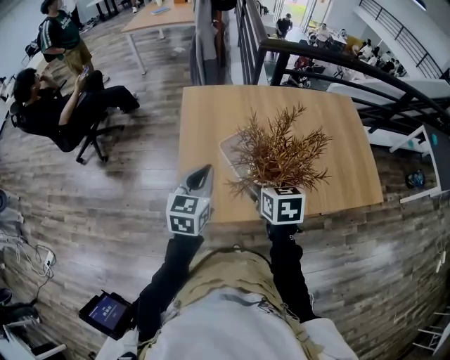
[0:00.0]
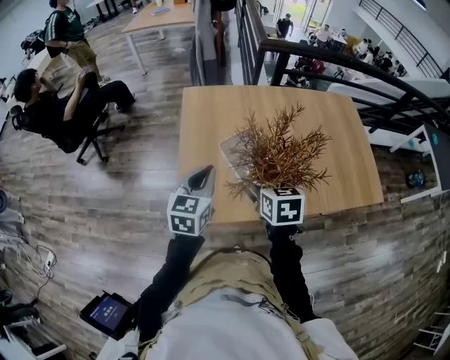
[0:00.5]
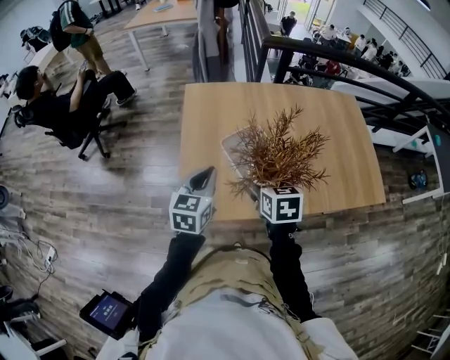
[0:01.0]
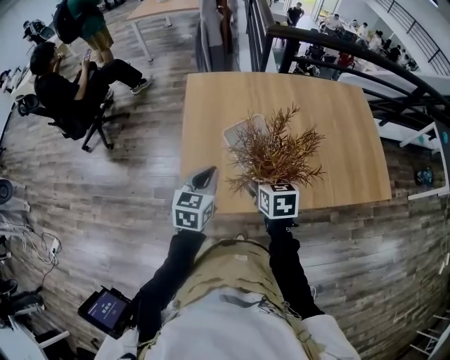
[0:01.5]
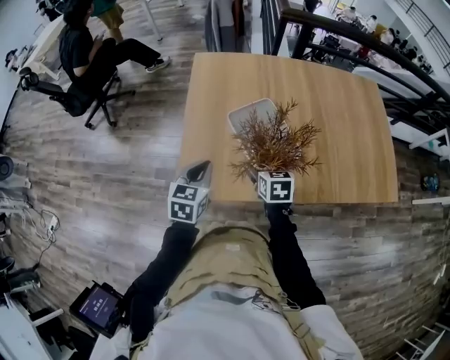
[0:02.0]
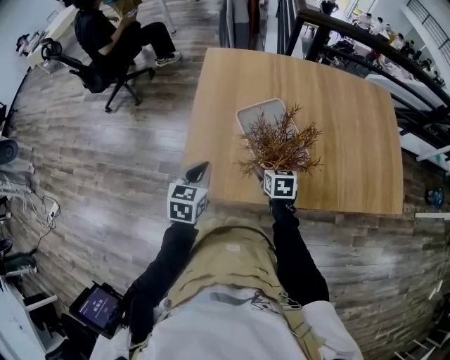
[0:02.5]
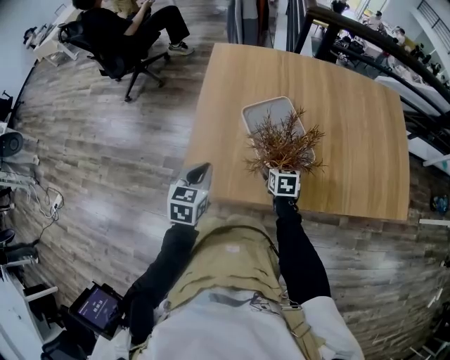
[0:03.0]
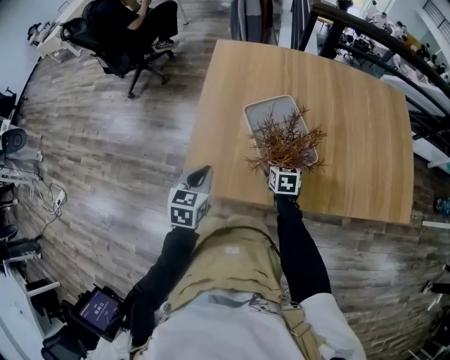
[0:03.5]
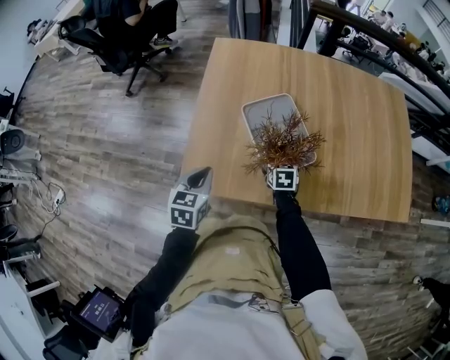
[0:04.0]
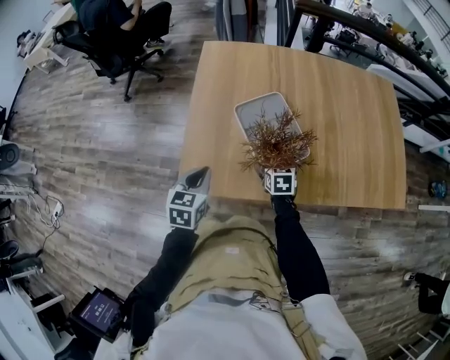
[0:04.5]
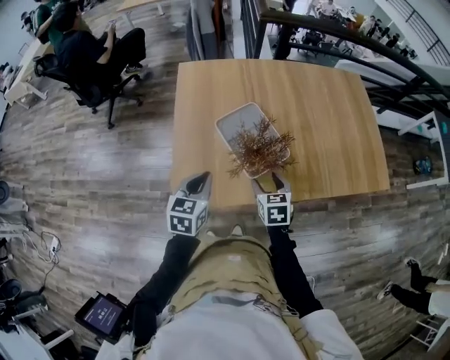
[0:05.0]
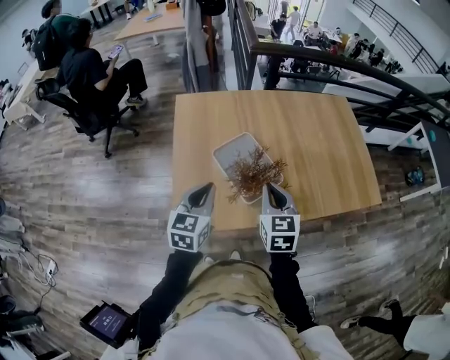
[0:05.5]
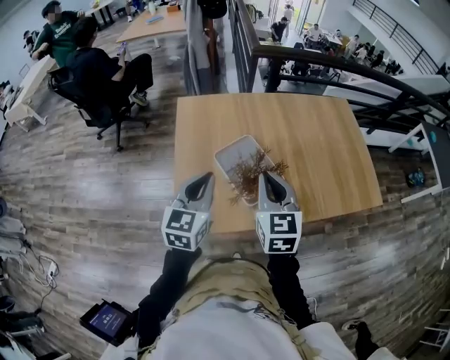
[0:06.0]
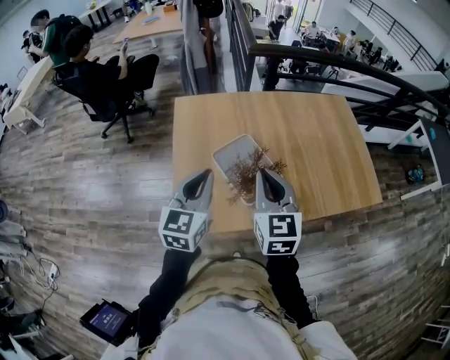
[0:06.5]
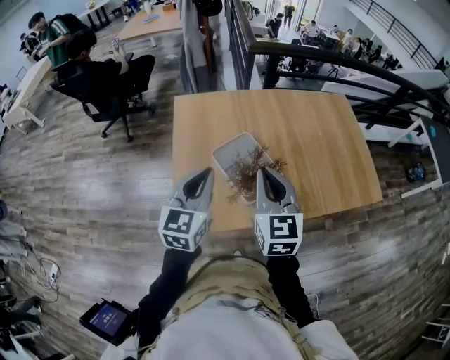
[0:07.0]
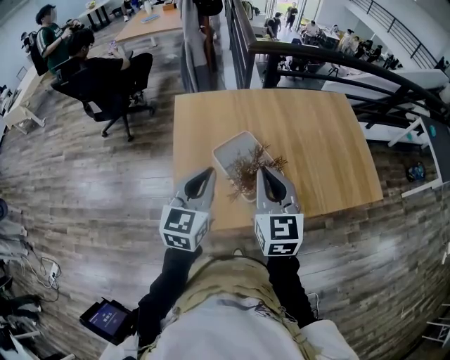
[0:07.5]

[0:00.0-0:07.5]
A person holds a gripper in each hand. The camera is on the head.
0:00.0 to 0:02.0: The grippers both shift downward by some 15 cm.
0:02.0 to 0:04.0: The left gripper moves approximately 5 cm, while the right gripper heads downward and forward, covering roughly 15 cm.
0:04.0 to 0:05.5: The left gripper heads upward, covering about 15 cm, and changes its angle by roughly 20 degrees. Meanwhile the right gripper heads upward, covering about 30 cm, changes its angle by some 30 degrees, and closes.
0:05.5 to 0:07.5: Both grippers move upward, roughly 10 cm.

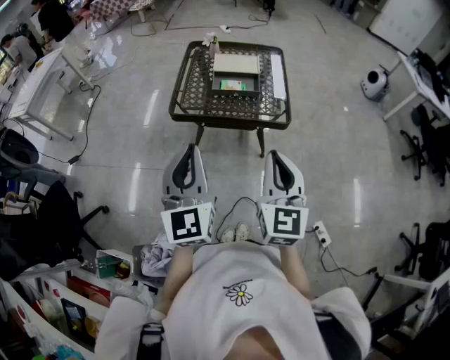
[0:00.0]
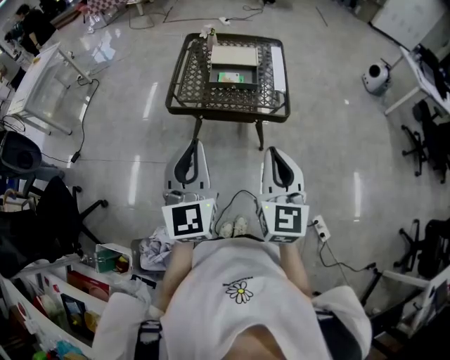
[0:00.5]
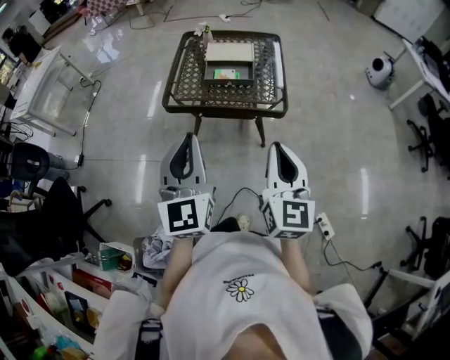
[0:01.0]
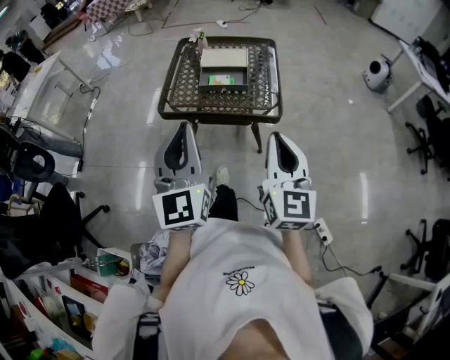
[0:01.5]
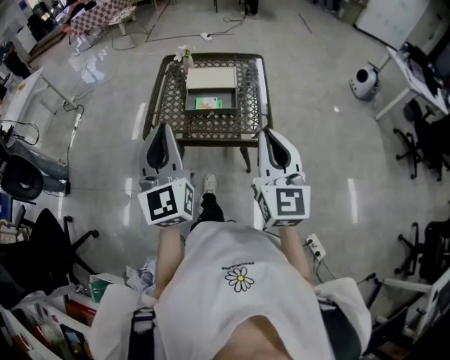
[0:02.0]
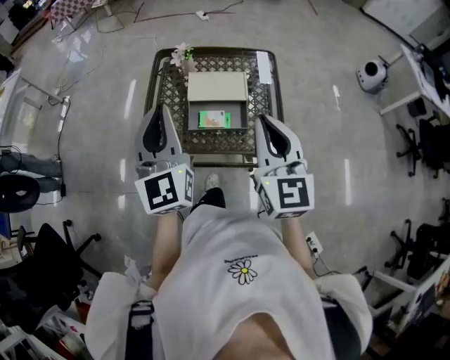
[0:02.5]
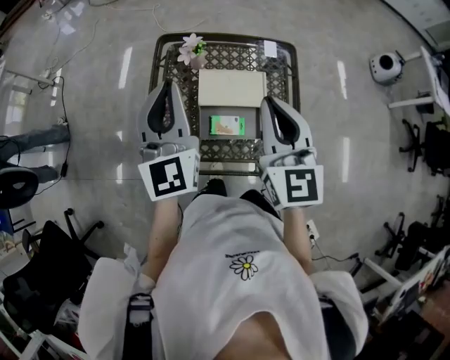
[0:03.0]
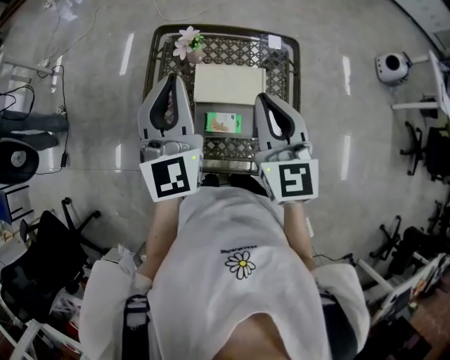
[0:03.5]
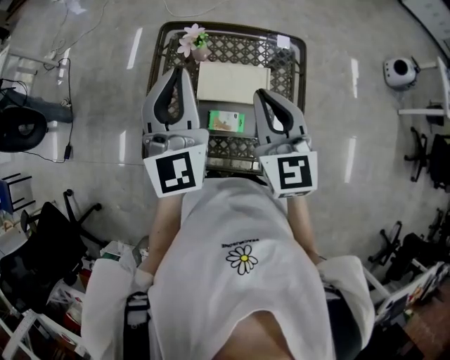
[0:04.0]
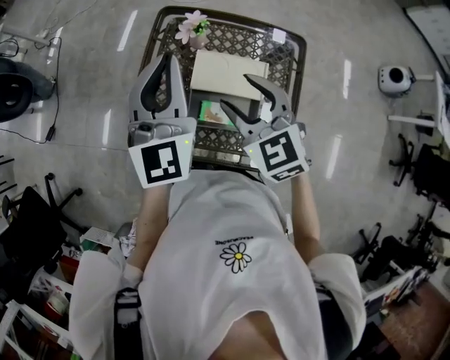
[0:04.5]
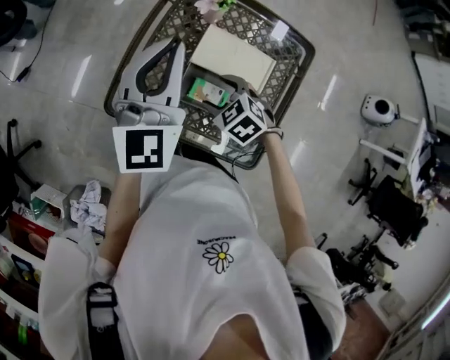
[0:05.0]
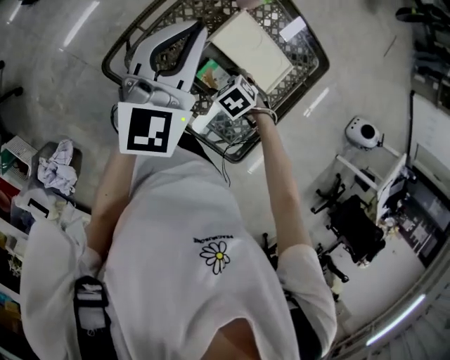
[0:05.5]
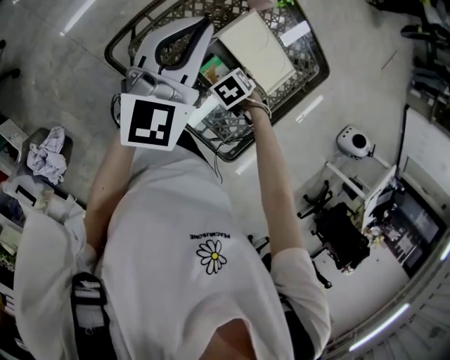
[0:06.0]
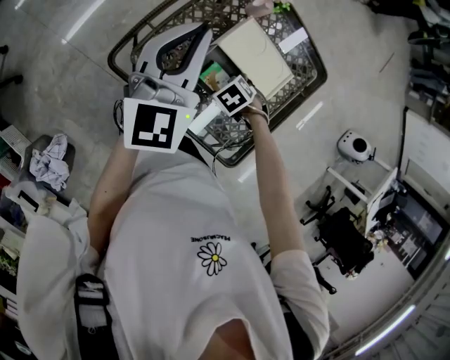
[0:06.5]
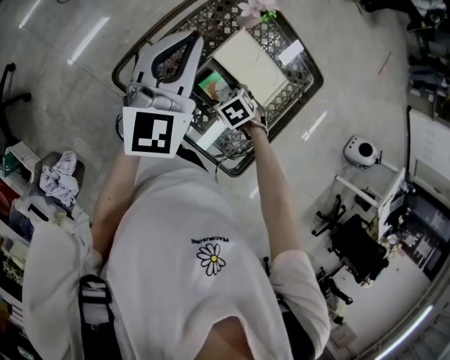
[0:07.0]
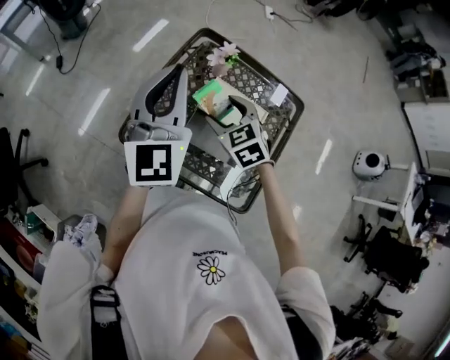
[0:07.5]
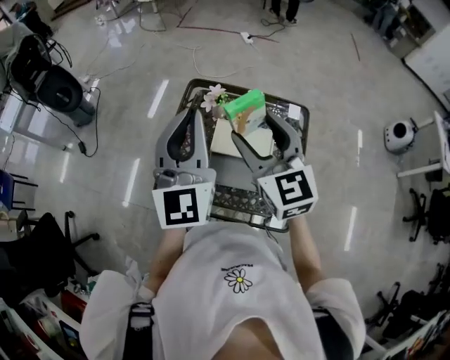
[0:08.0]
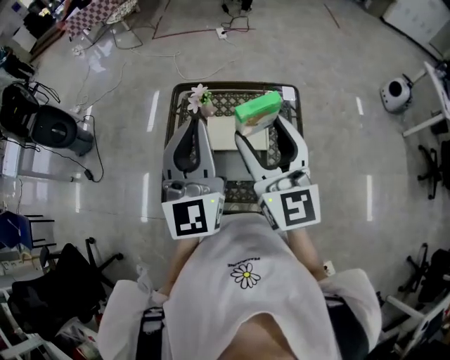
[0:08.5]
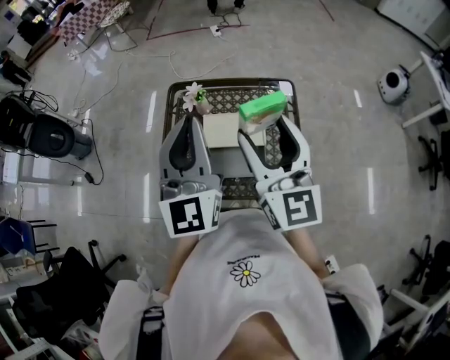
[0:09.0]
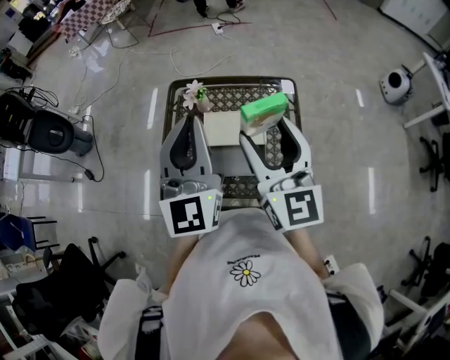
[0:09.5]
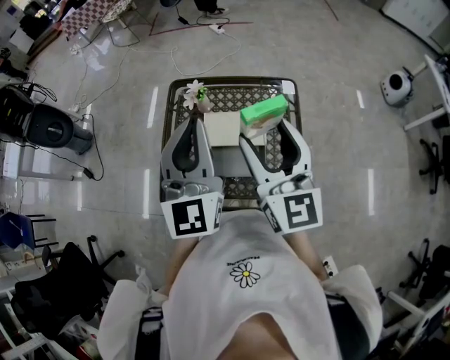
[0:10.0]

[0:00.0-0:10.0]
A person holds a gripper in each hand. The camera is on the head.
0:00.0 to 0:02.0: The right gripper moves forward and to the right, approximately 15 cm. Meanwhile the left gripper shifts about 15 cm forward.
0:02.0 to 0:04.0: Both grippers travel together forward, some 40 cm. The right gripper rotates about 20 degrees.
0:04.0 to 0:06.0: The right gripper is displaced downward by approximately 40 cm, angles its fingers downward, by roughly 70 degrees, and opens up. Meanwhile the left gripper travels downward by some 15 cm.
0:06.0 to 0:08.0: The right gripper heads upward, covering approximately 50 cm, and tilts its fingers about 80 degrees upward. The left gripper goes roughly 20 cm upward.
0:08.0 to 0:10.0: The right gripper heads to the right and backward, covering some 10 cm, and turns by approximately 20 degrees. The left gripper goes some 5 cm to the right.

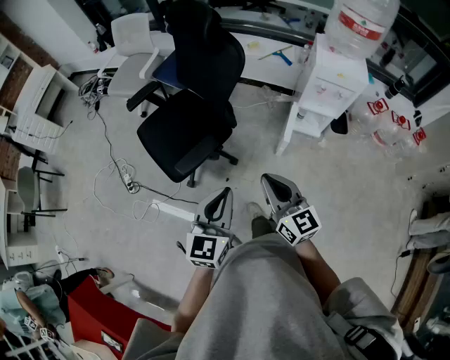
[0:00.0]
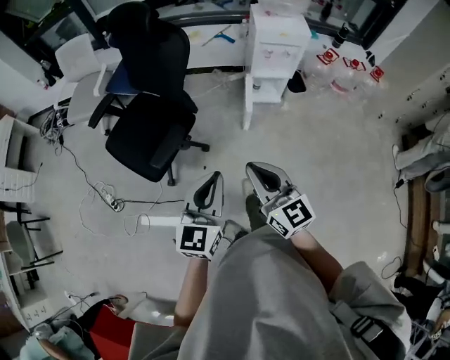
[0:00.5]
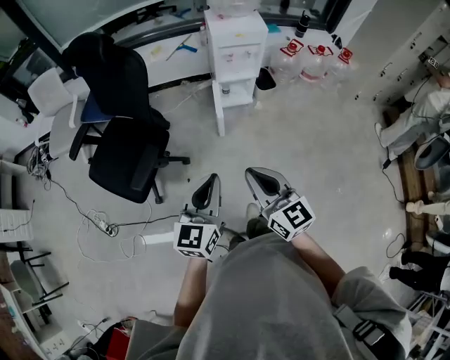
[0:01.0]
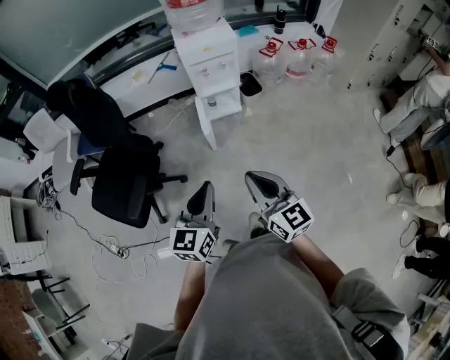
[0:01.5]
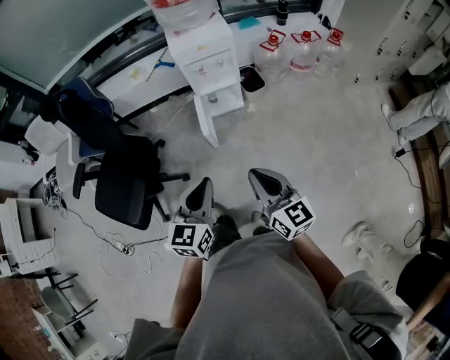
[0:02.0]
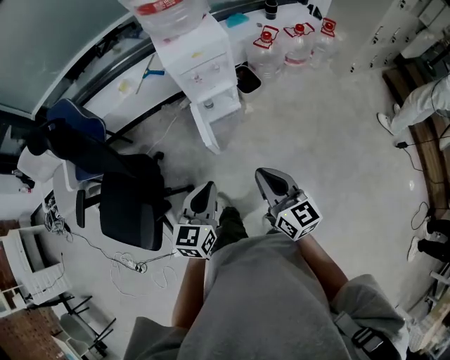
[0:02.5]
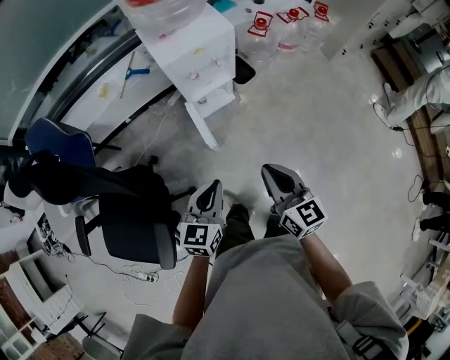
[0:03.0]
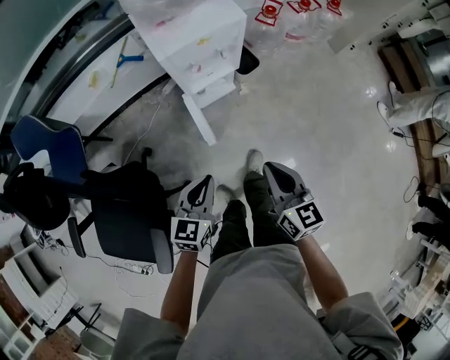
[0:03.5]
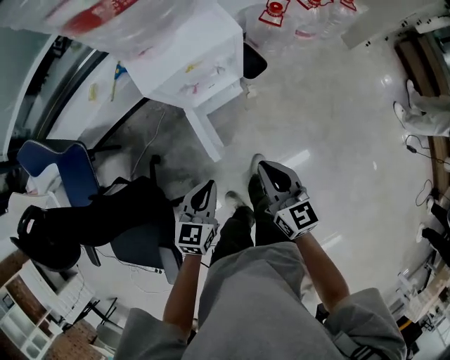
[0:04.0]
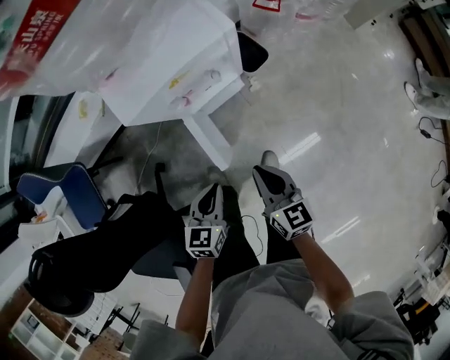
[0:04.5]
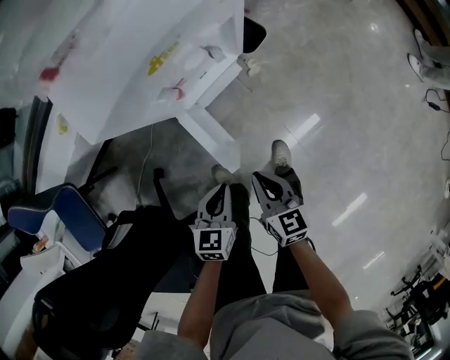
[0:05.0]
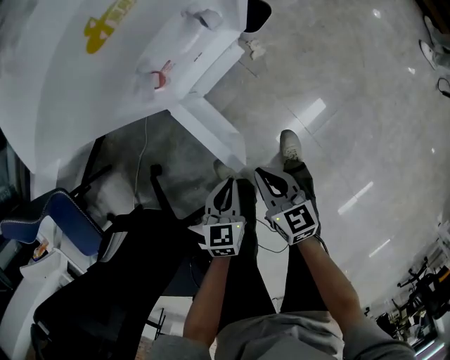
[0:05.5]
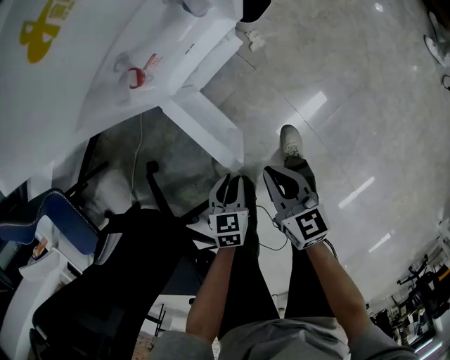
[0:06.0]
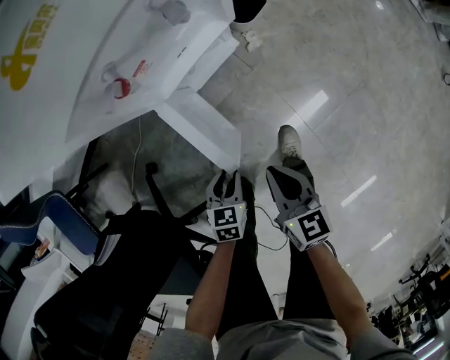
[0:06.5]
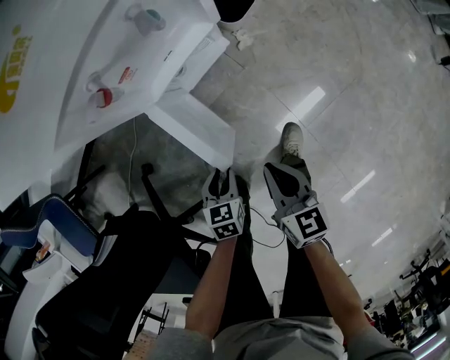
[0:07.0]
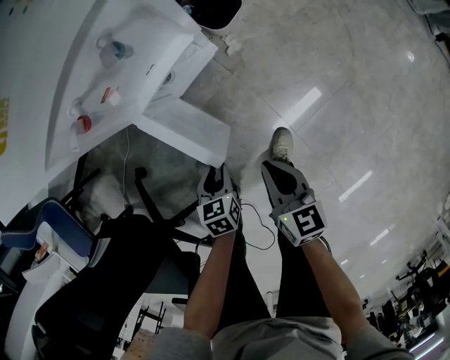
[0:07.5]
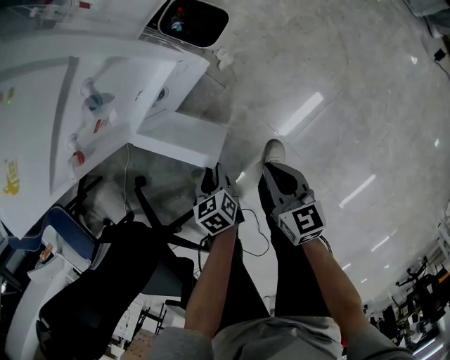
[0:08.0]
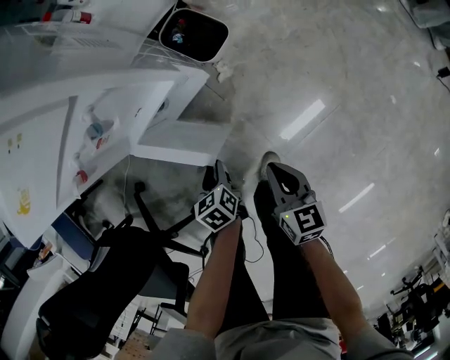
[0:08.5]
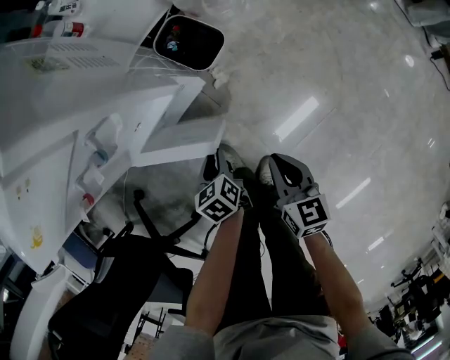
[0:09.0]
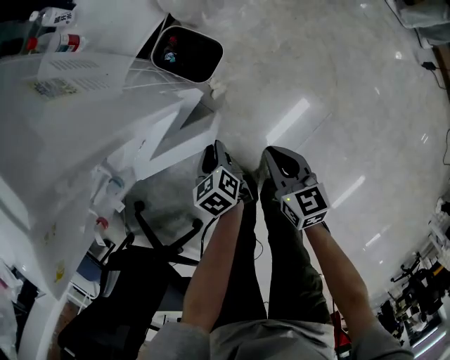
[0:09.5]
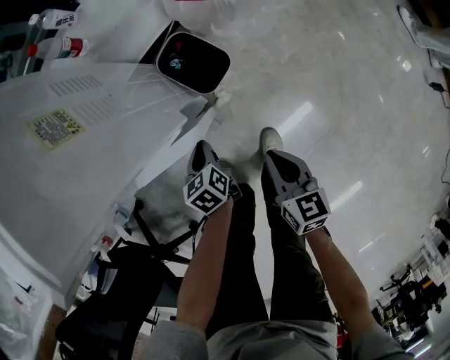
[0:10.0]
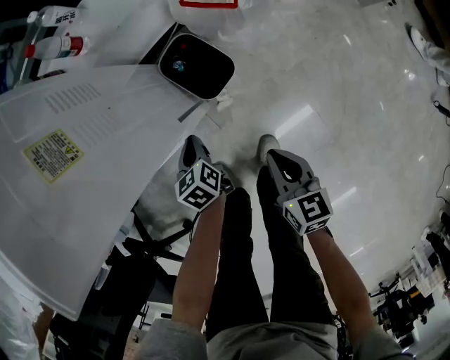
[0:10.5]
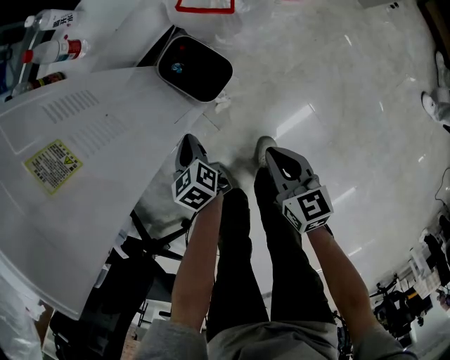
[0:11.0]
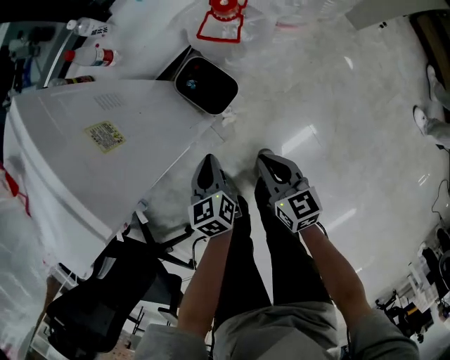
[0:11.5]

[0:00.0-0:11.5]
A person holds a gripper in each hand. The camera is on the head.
0:00.0 to 0:02.0: The two grippers go approximately 25 cm to the right. The right gripper turns by some 30 degrees. The left gripper changes its angle by some 30 degrees.
0:02.0 to 0:04.0: The grippers both shift forward and downward by about 35 cm. The right gripper rotates some 20 degrees; the left gripper swivels some 30 degrees.
0:04.0 to 0:06.0: The two grippers go about 35 cm downward. The left gripper changes its angle by approximately 30 degrees, and opens. Meanwhile the right gripper changes its angle by about 20 degrees.
0:06.0 to 0:07.5: The right gripper goes about 10 cm to the right, while the left gripper is displaced to the right by some 5 cm.
0:07.5 to 0:09.5: Both grippers move forward and to the right, about 25 cm. The left gripper changes its angle by some 20 degrees.
0:09.5 to 0:11.5: The left gripper travels upward, forward and to the right by approximately 15 cm, and closes its fingers; the right gripper heads forward, upward and to the right, covering about 15 cm.
